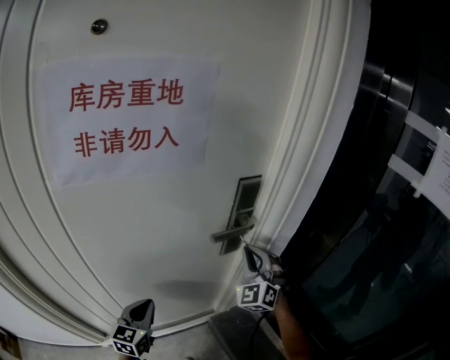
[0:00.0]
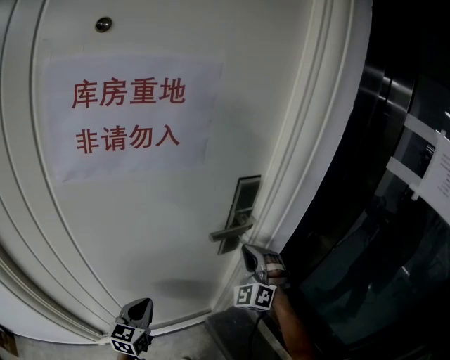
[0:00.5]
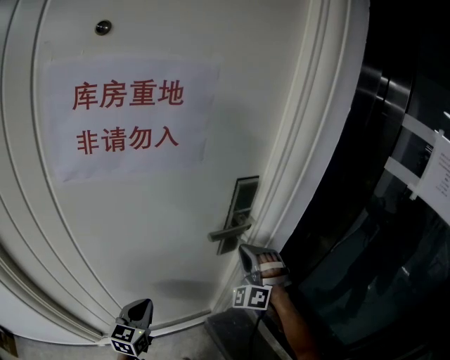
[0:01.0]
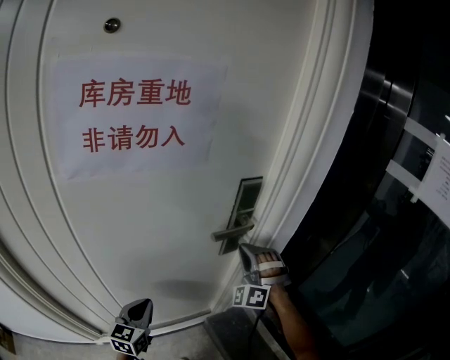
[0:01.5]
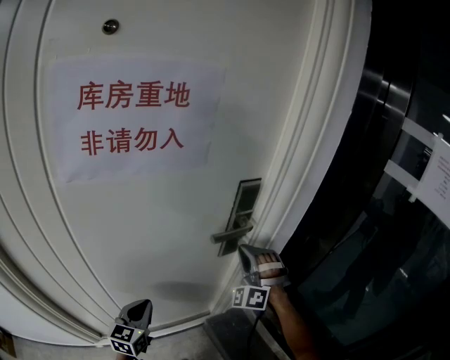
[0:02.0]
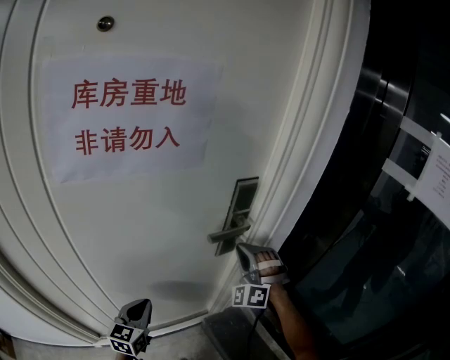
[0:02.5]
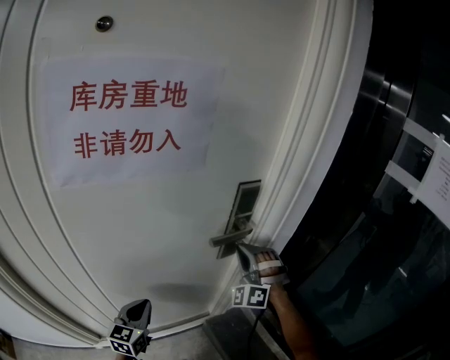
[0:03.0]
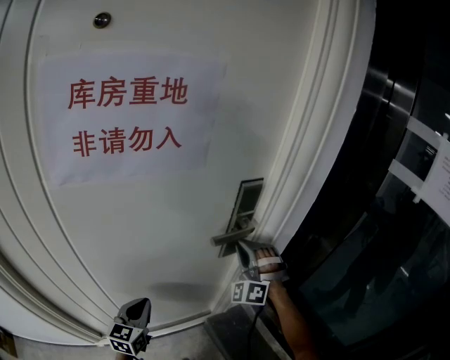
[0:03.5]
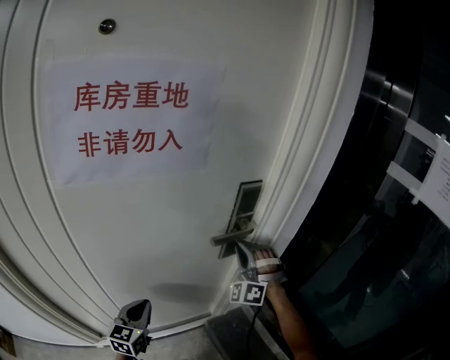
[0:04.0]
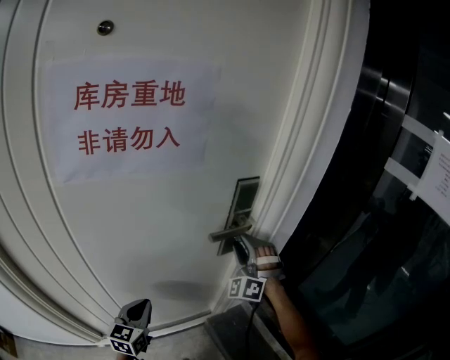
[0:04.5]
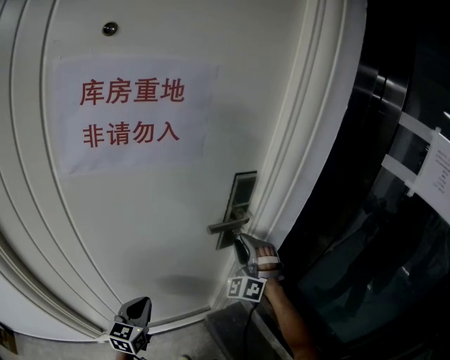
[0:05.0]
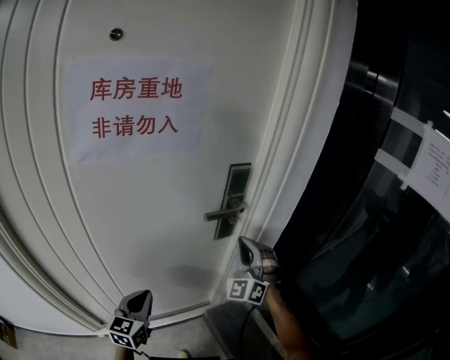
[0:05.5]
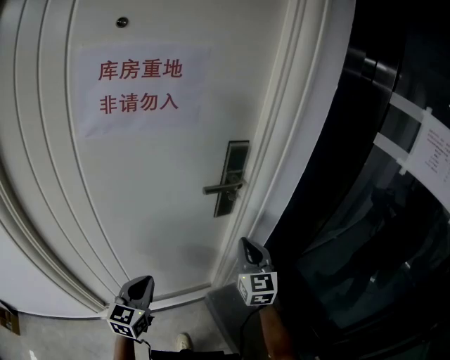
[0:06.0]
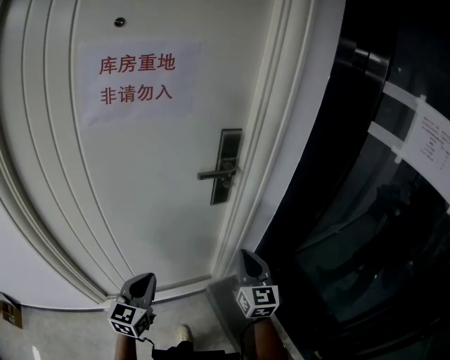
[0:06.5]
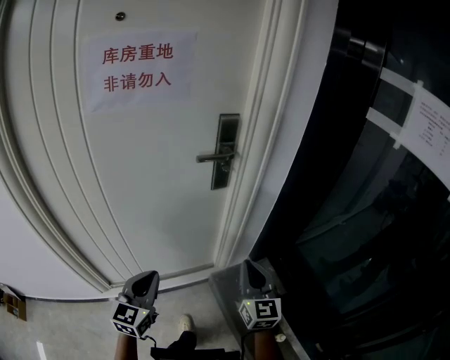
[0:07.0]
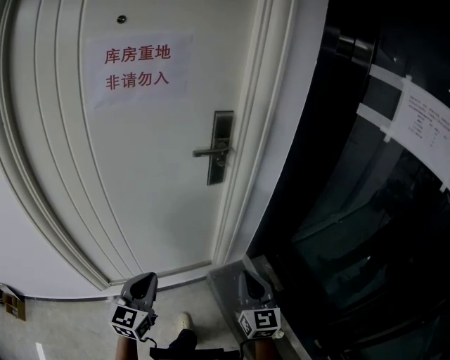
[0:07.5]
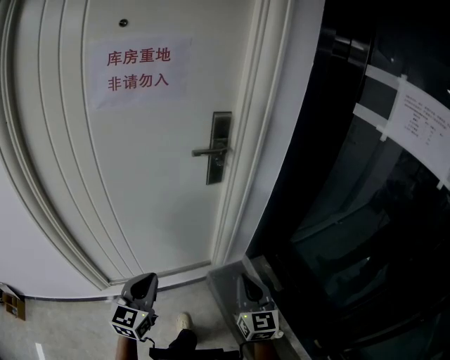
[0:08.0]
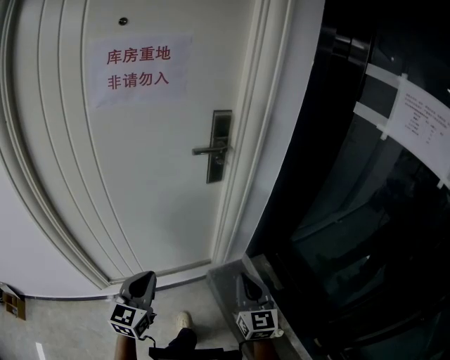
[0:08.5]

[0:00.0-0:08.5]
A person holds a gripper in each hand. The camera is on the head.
0:00.0 to 0:02.0: The right gripper turns by about 30 degrees.
0:02.0 to 0:04.0: The grippers stay close to where they were, moving slightly.
0:04.0 to 0:06.5: The left gripper heads backward and to the right, covering roughly 15 cm. Meanwhile the right gripper travels backward by about 20 cm, rolls clockwise, seen from behind, by roughly 80 degrees, and opens, then closes again.
0:06.5 to 0:08.5: The left gripper heads backward, covering approximately 10 cm. Meanwhile the right gripper is displaced backward by about 15 cm.

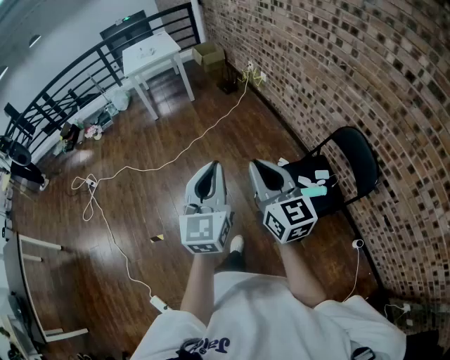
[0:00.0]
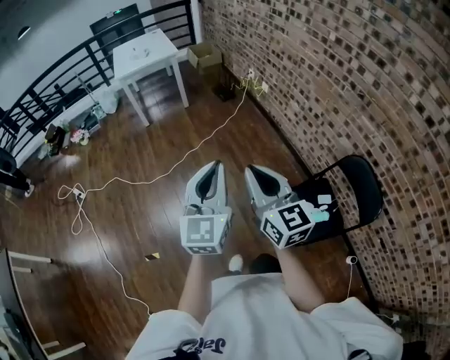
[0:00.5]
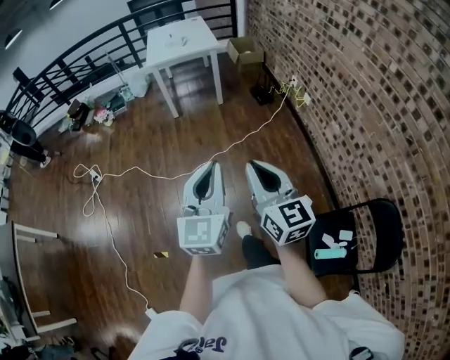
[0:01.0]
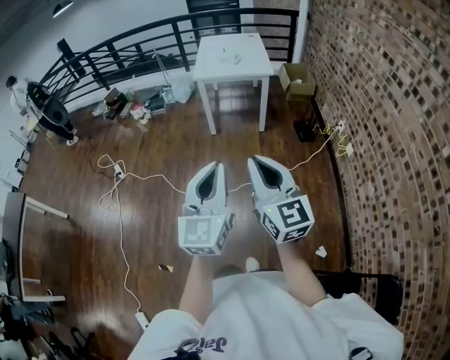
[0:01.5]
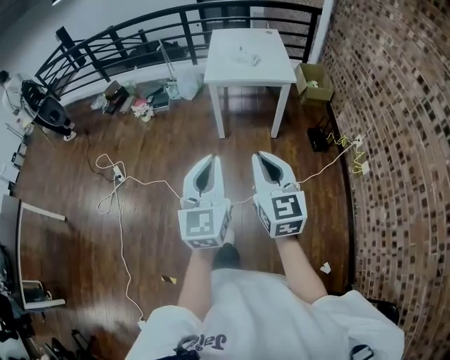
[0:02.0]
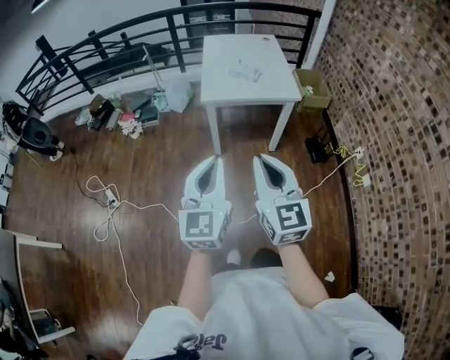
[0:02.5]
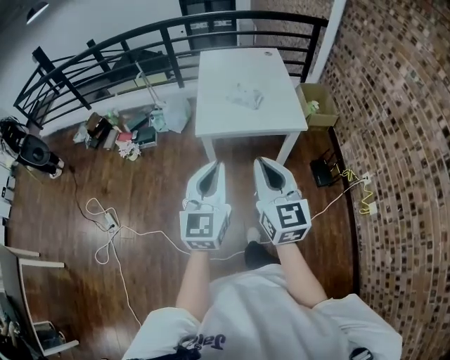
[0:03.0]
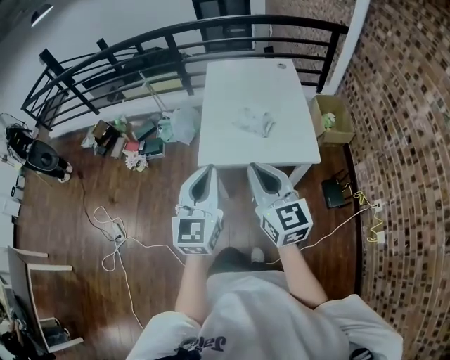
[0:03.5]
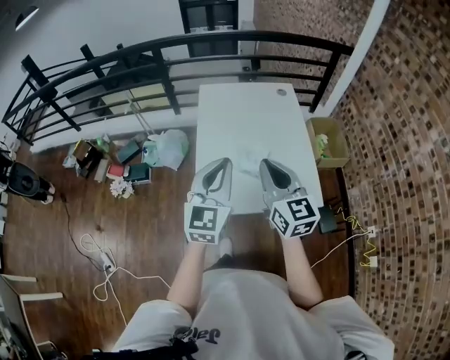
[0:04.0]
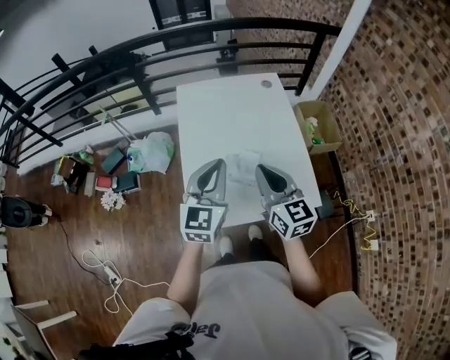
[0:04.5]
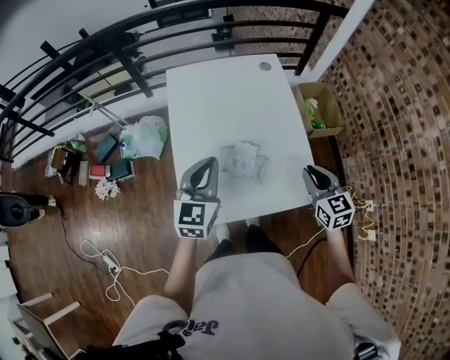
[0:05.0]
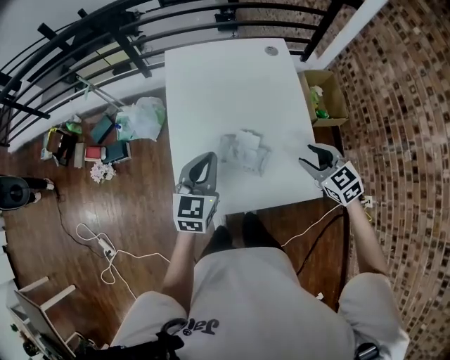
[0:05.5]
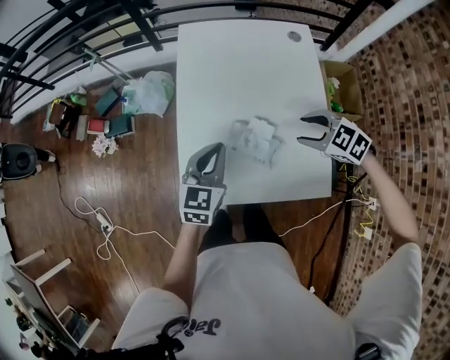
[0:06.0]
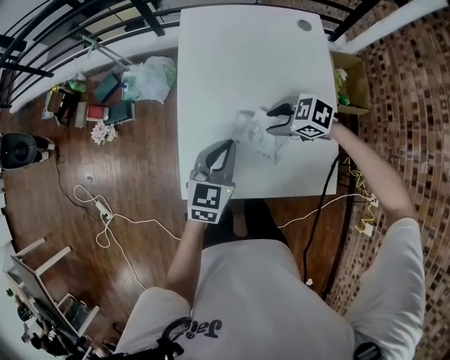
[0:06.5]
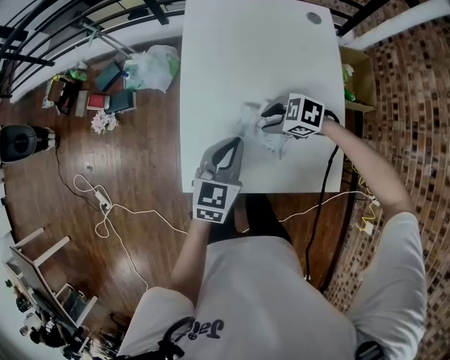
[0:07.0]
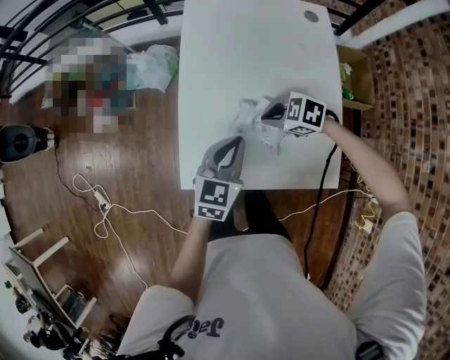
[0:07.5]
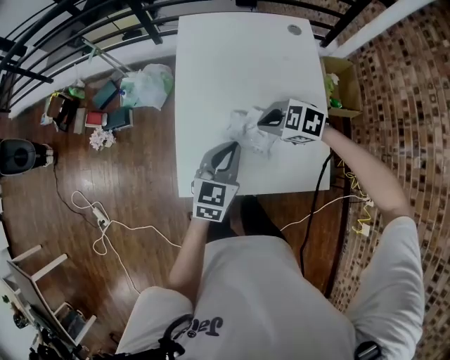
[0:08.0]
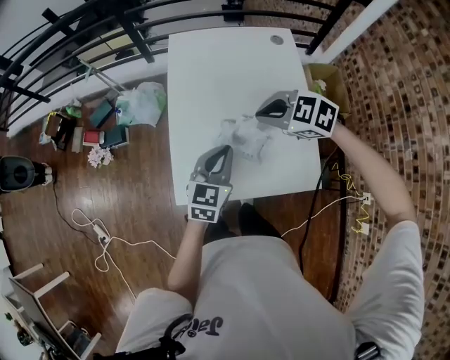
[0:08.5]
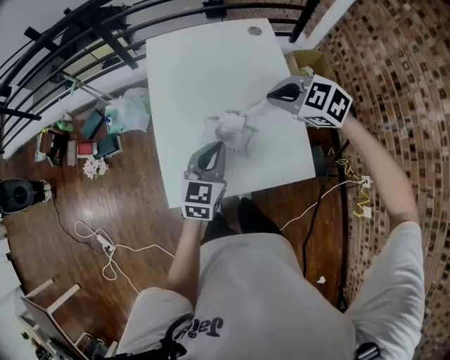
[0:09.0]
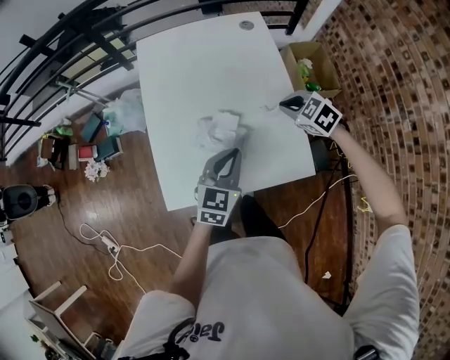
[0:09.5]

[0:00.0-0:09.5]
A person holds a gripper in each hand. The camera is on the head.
0:00.0 to 0:02.0: The pair of grippers is taken approximately 80 cm. The left gripper turns by about 30 degrees. Meanwhile the right gripper swivels approximately 20 degrees.
0:02.0 to 0:04.0: The pair of grippers is taken forward, approximately 80 cm.
0:04.0 to 0:05.5: The left gripper shifts approximately 20 cm downward and forward, and rotates about 20 degrees. Meanwhile the right gripper shifts approximately 30 cm to the right, downward and forward, tips its fingers downward by some 40 degrees, and opens its fingers.
0:05.5 to 0:07.5: The left gripper travels downward by roughly 10 cm. Meanwhile the right gripper shifts by roughly 25 cm, turns by approximately 50 degrees, and closes up.
0:07.5 to 0:09.5: The right gripper ends up some 20 cm from where it was, and changes its angle by about 40 degrees; the left gripper changes place by approximately 10 cm.

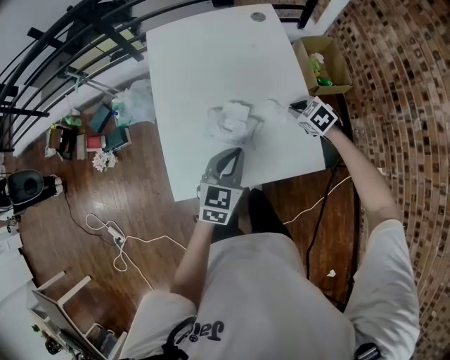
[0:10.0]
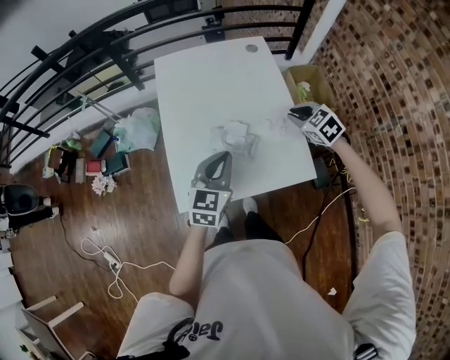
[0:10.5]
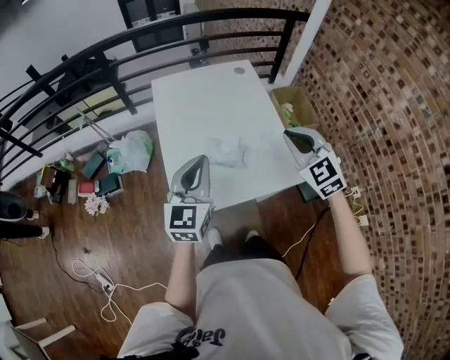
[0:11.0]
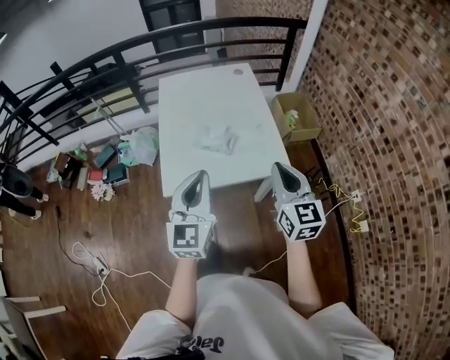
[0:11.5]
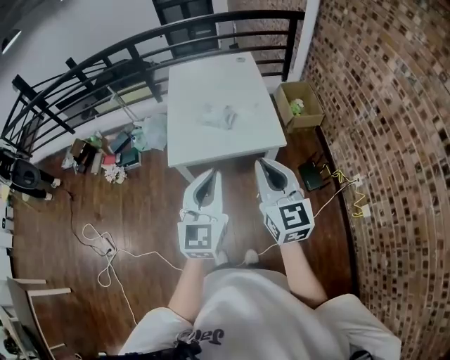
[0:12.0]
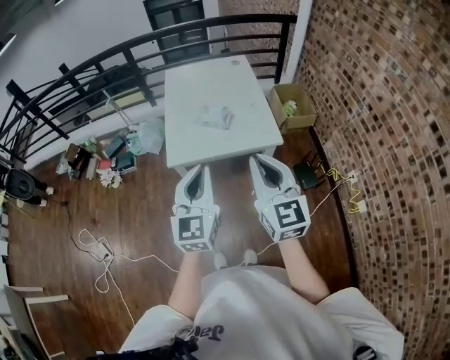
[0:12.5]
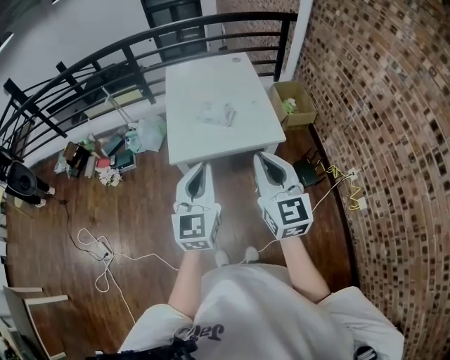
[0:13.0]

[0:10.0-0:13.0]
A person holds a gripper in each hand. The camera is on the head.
0:10.0 to 0:11.5: The right gripper goes about 40 cm backward and upward, and points its fingers approximately 50 degrees further upward. Meanwhile the left gripper goes approximately 30 cm backward and upward, and changes its angle by approximately 30 degrees.
0:11.5 to 0:13.0: The left gripper moves backward, approximately 15 cm, while the right gripper goes approximately 20 cm backward and upward.

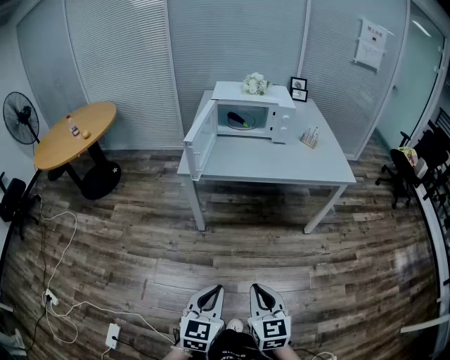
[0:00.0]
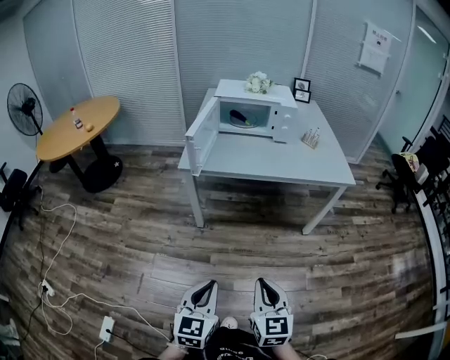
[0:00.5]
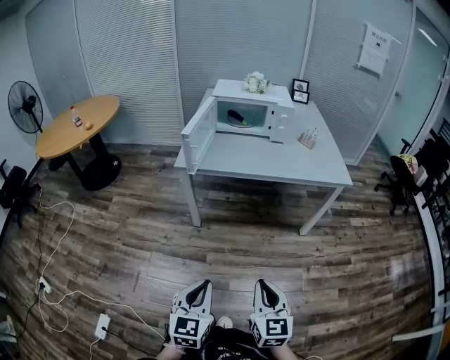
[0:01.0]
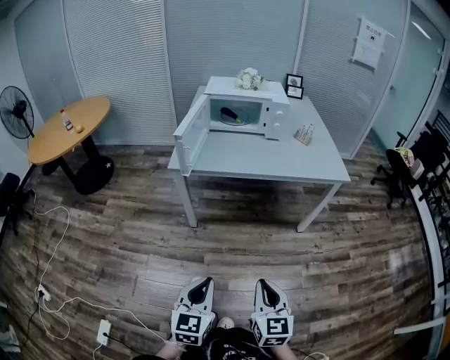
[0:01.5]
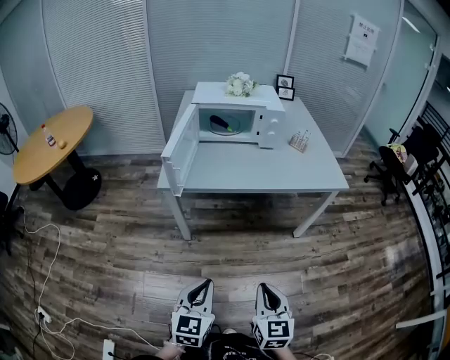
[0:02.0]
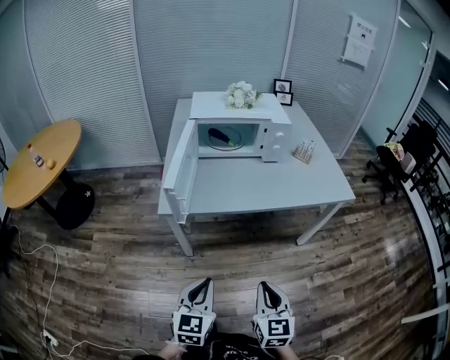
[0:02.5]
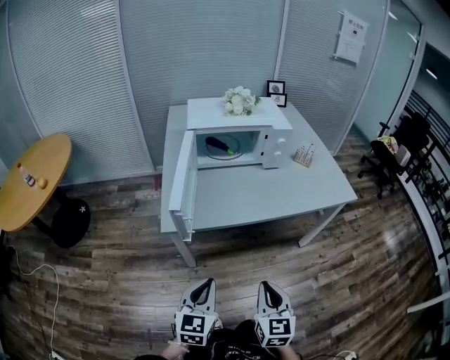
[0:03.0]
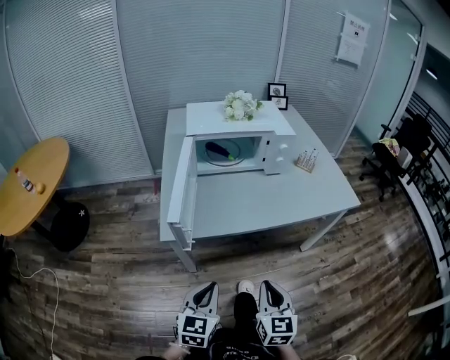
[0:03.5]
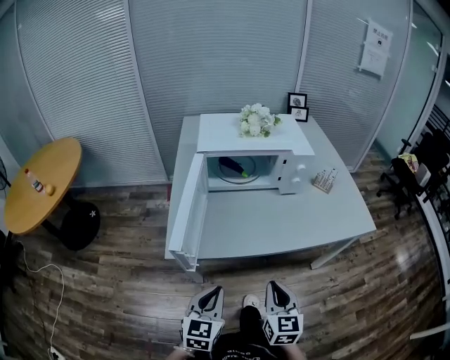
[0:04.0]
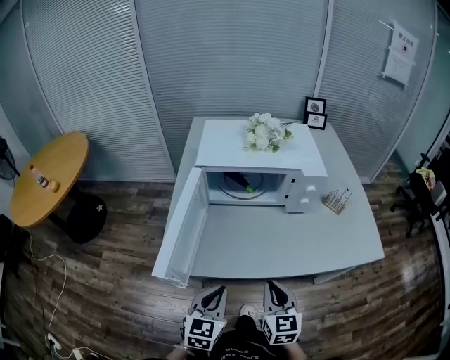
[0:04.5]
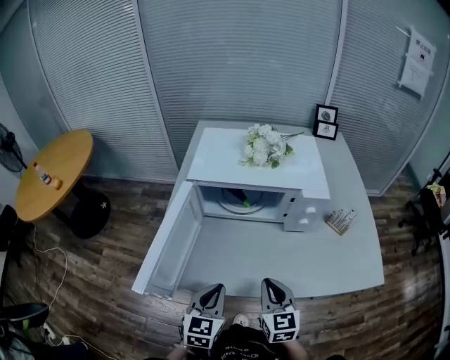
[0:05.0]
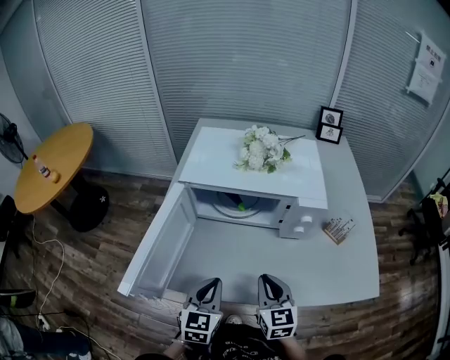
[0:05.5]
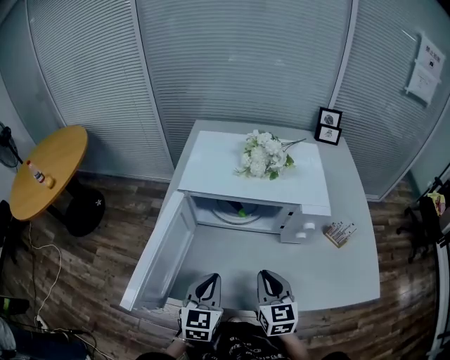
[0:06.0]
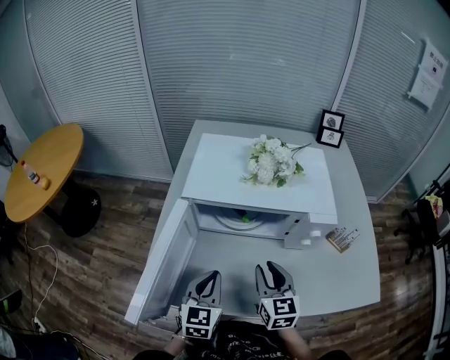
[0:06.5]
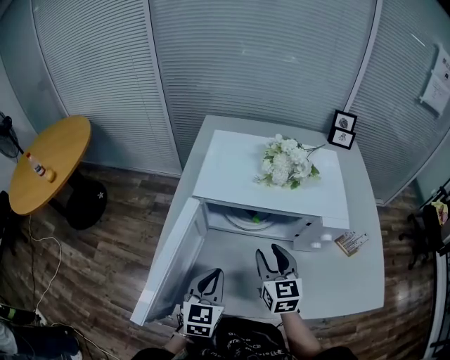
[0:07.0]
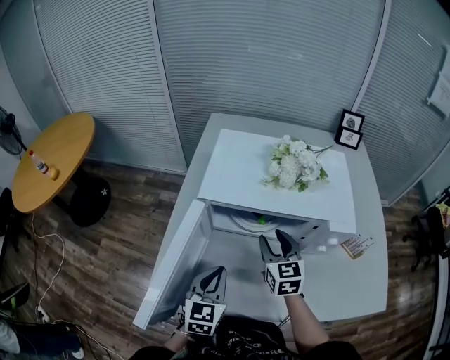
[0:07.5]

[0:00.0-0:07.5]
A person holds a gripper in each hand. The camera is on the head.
0:00.0 to 0:02.0: Both grippers travel together forward, about 10 cm.
0:02.0 to 0:04.0: The grippers both shift forward by roughly 25 cm.
0:04.0 to 0:05.5: The right gripper moves forward, some 20 cm, and swivels roughly 20 degrees, while the left gripper goes roughly 20 cm forward and to the right.
0:05.5 to 0:07.5: The left gripper moves forward and to the left, about 10 cm; the right gripper moves forward, about 20 cm, and opens.
